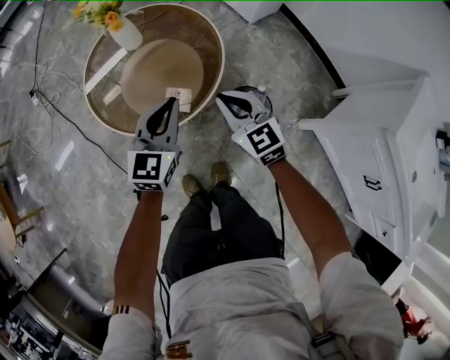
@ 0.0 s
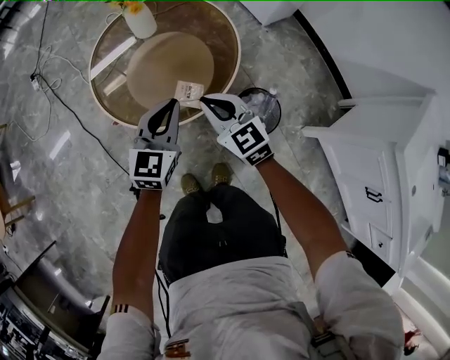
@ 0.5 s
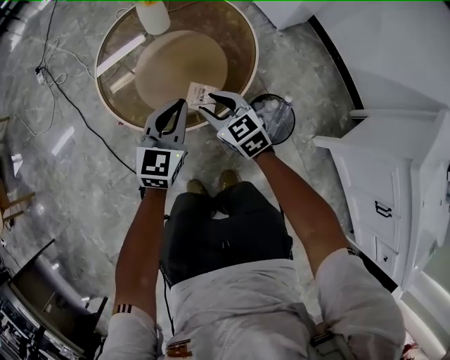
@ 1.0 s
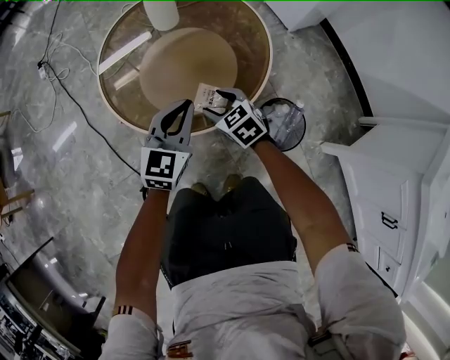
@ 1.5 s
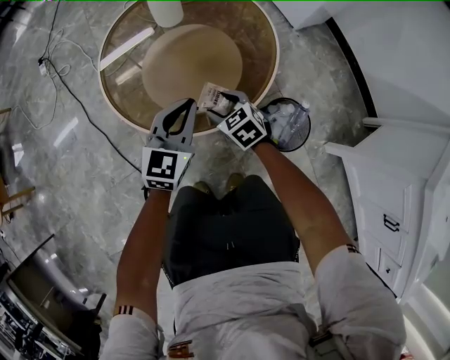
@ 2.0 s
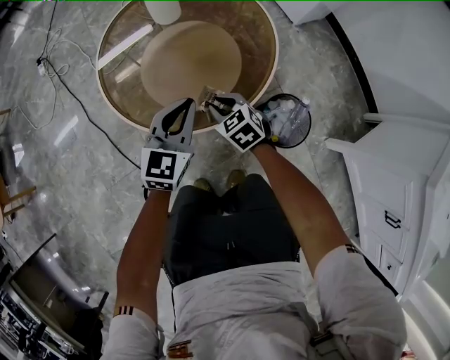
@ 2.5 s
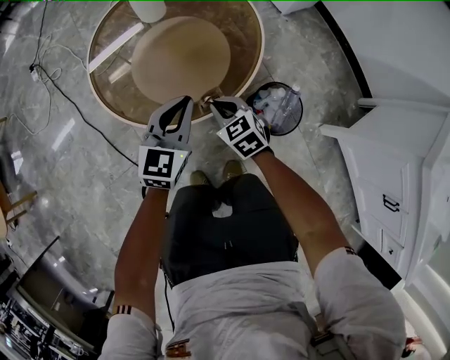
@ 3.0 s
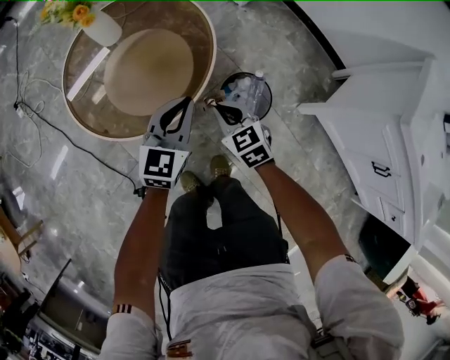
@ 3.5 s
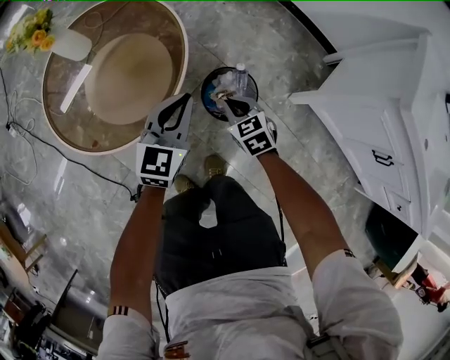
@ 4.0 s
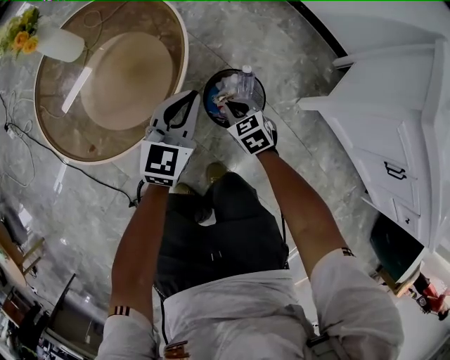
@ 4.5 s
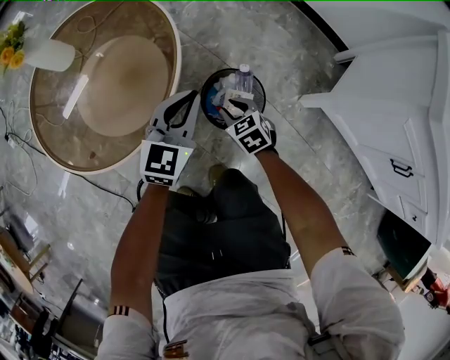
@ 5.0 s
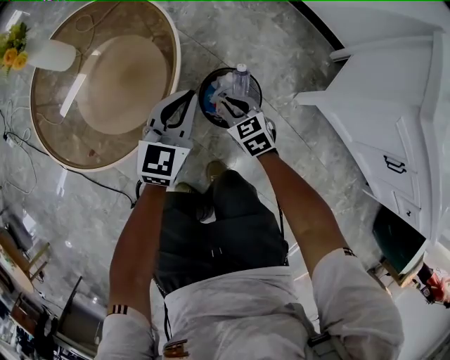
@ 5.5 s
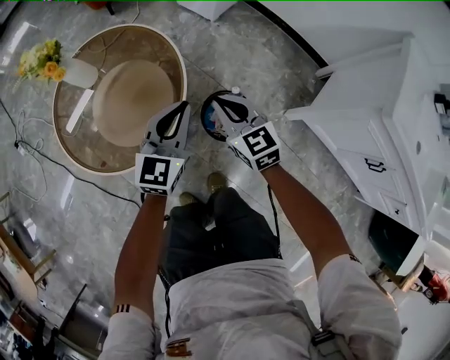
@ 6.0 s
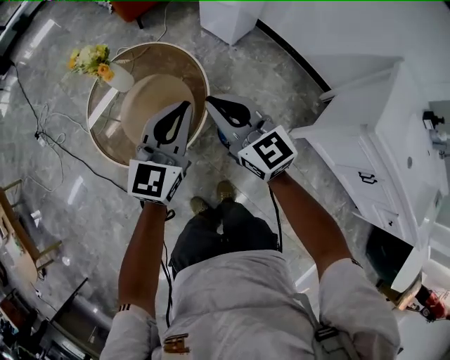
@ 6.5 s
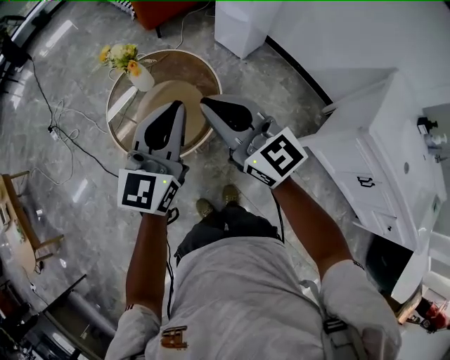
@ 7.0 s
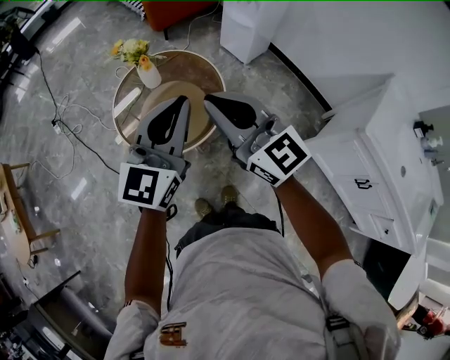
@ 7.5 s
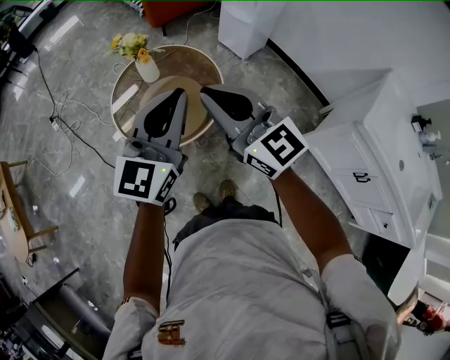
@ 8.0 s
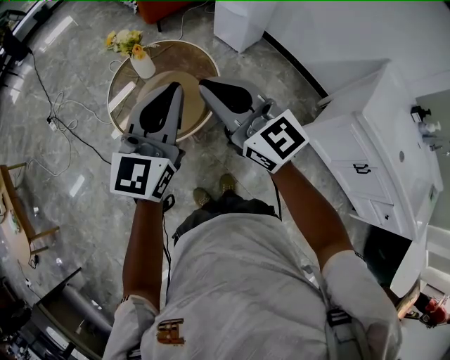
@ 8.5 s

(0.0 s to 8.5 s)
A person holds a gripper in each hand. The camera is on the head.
0.0 s - 2.0 s: The right gripper heads downward and to the left, covering some 30 cm, swivels approximately 30 degrees, and opens up, while the left gripper moves downward and to the left, about 20 cm.
2.0 s - 4.0 s: The right gripper moves some 10 cm upward and comes back, rotates about 30 degrees, and closes up. The left gripper changes place by some 20 cm, and rotates some 20 degrees.
4.0 s - 6.5 s: Both grippers move upward, approximately 35 cm. The right gripper tips its fingers upward by roughly 40 degrees, and opens, then closes again.
6.5 s - 8.5 s: The grippers both shift upward, backward and to the left by approximately 20 cm.

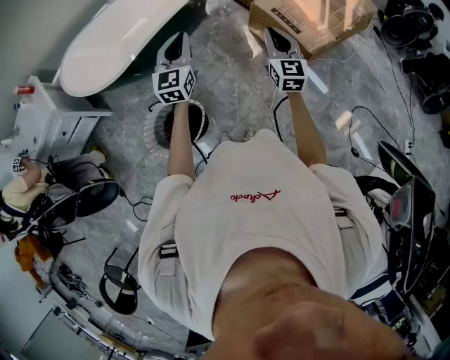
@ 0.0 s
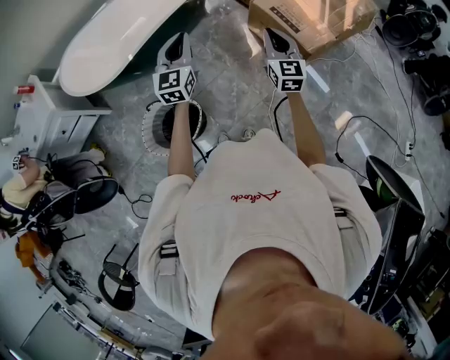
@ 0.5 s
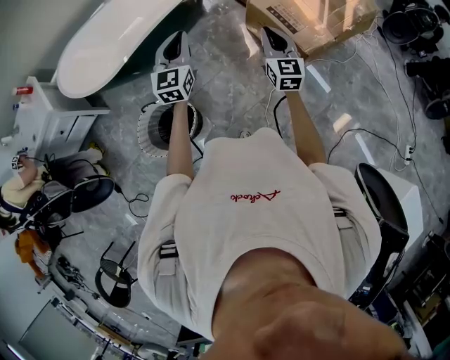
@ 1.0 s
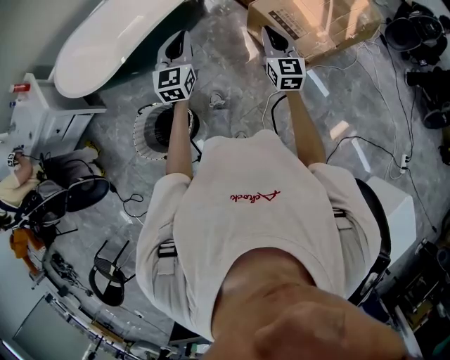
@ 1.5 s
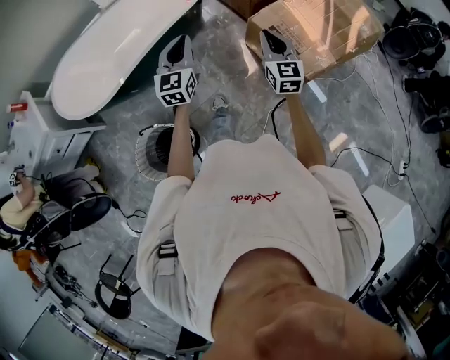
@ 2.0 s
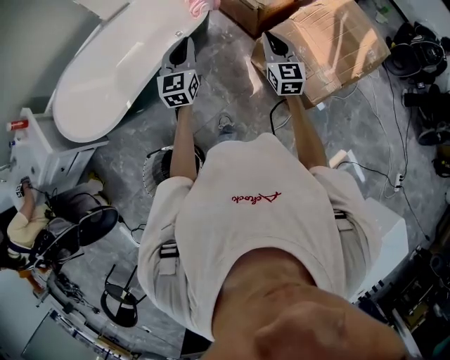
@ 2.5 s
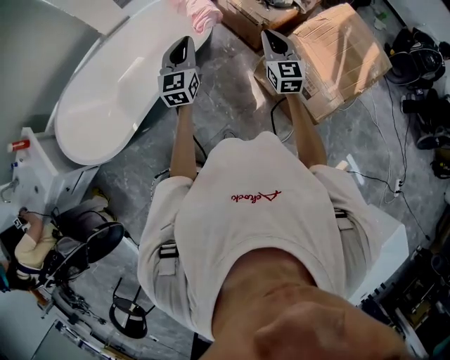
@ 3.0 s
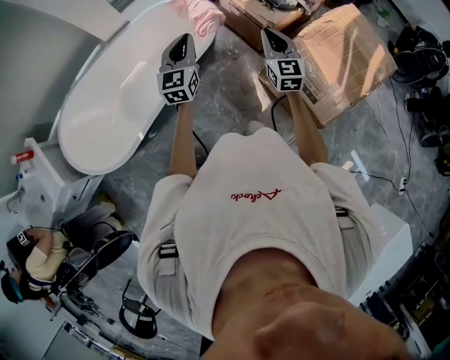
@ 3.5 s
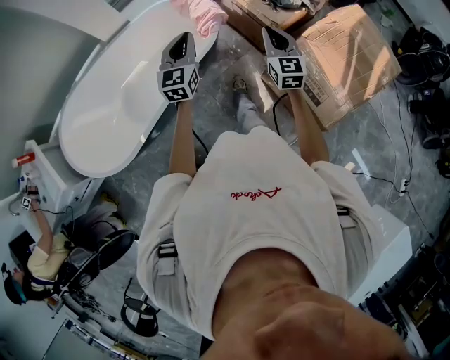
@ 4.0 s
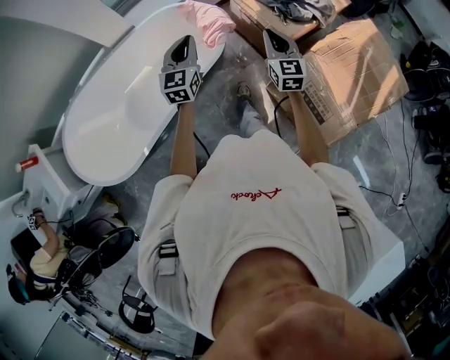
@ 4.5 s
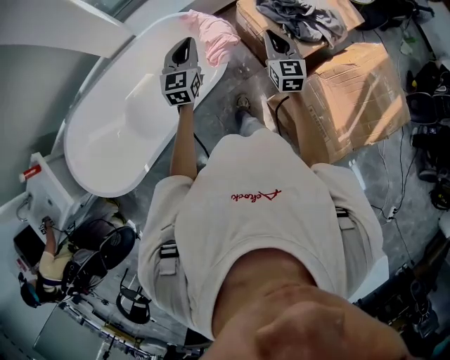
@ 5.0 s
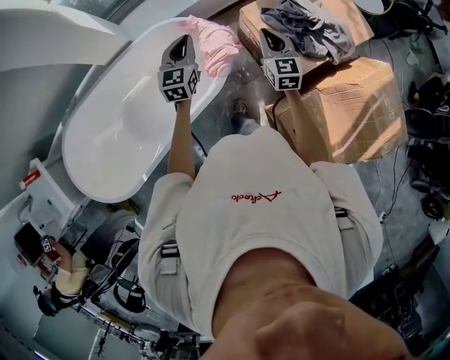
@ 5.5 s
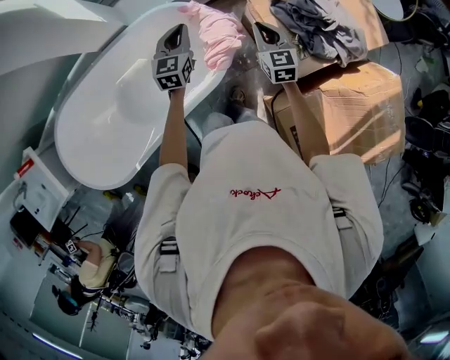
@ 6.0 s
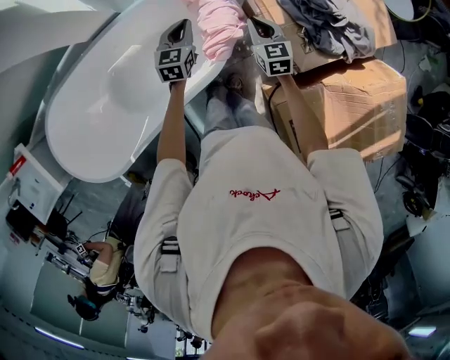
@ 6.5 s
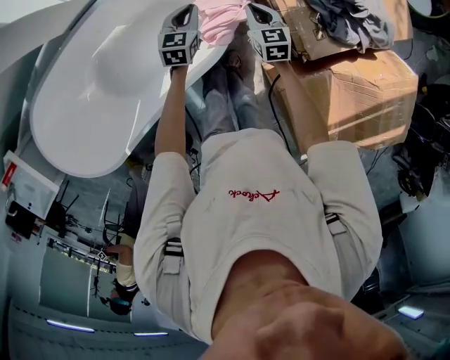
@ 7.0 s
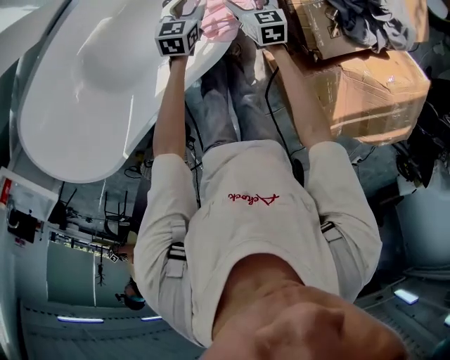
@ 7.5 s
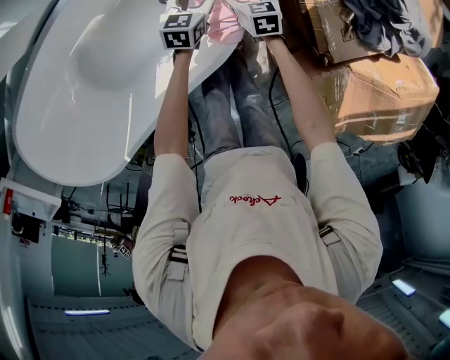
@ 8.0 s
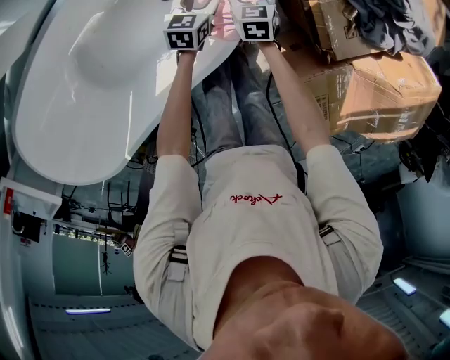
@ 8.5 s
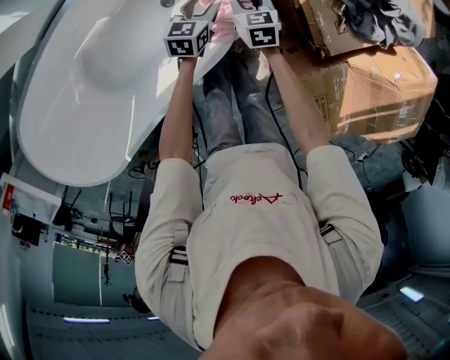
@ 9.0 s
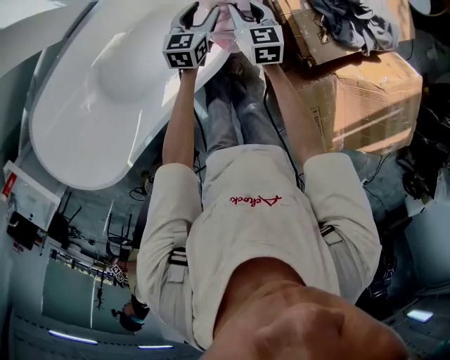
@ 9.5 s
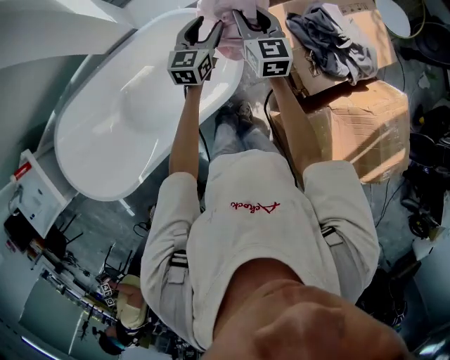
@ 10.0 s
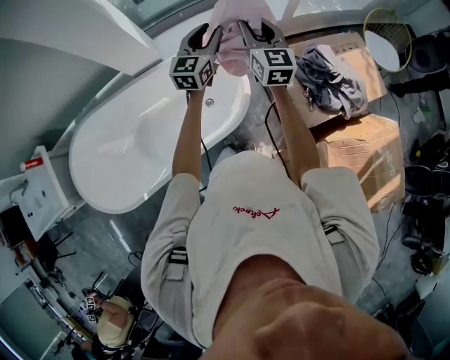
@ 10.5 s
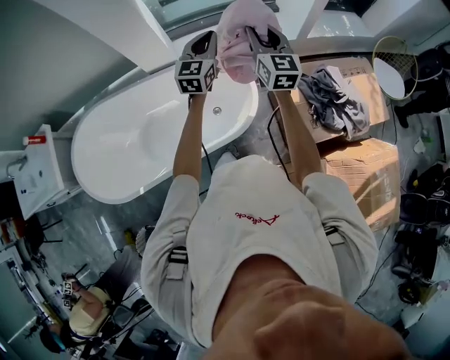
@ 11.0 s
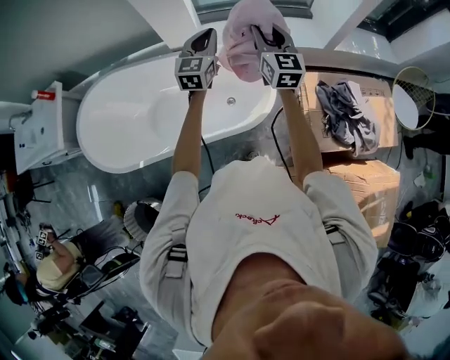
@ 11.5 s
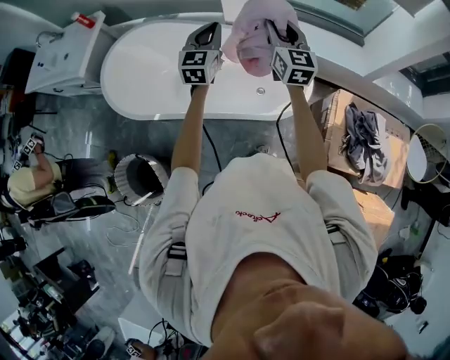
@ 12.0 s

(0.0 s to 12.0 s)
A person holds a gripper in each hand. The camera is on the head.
0.0 s - 2.0 s: The left gripper heads forward and to the right, covering approximately 20 cm; the right gripper shifts about 15 cm forward.
2.0 s - 4.0 s: The grippers both shift forward by roughly 35 cm.
4.0 s - 6.0 s: The pair of grippers is taken forward, some 40 cm. The right gripper rotates some 20 degrees. The left gripper turns by about 20 degrees.
6.0 s - 8.0 s: Both grippers move downward, approximately 40 cm. The left gripper turns by roughly 30 degrees, and opens up, while the right gripper swivels about 30 degrees, and opens up.
8.0 s - 10.0 s: Both grippers travel together upward, roughly 40 cm. The right gripper points its fingers approximately 40 degrees further upward, and closes up; the left gripper turns by about 30 degrees.
10.0 s - 12.0 s: The left gripper ends up approximately 40 cm from where it was, changes its angle by approximately 50 degrees, and closes. Meanwhile the right gripper shifts by some 35 cm, and rotates about 40 degrees.

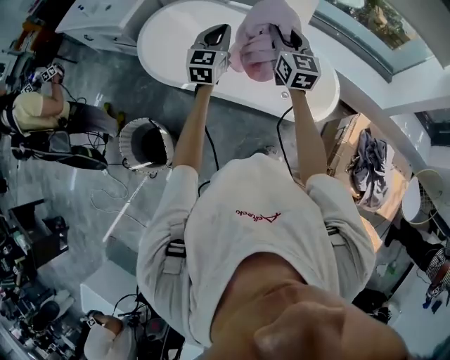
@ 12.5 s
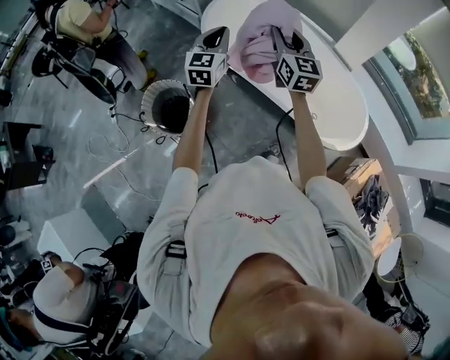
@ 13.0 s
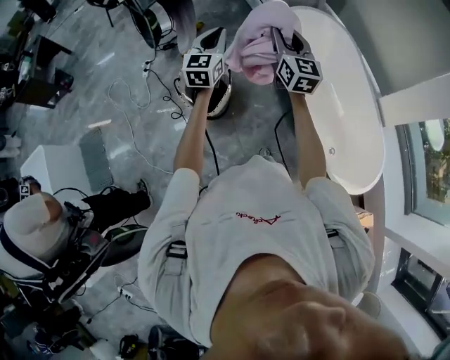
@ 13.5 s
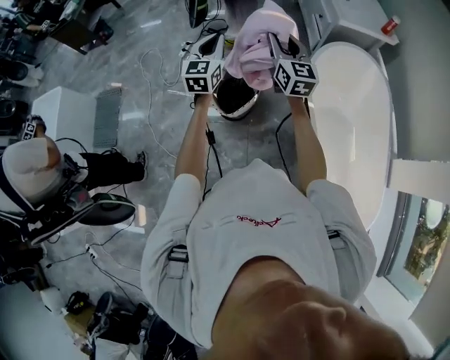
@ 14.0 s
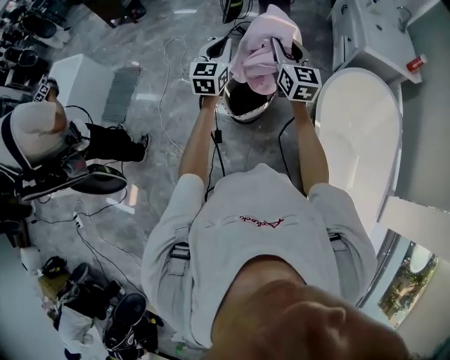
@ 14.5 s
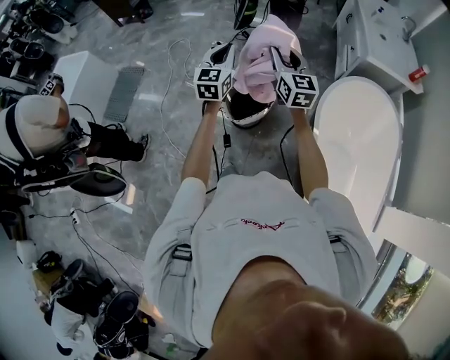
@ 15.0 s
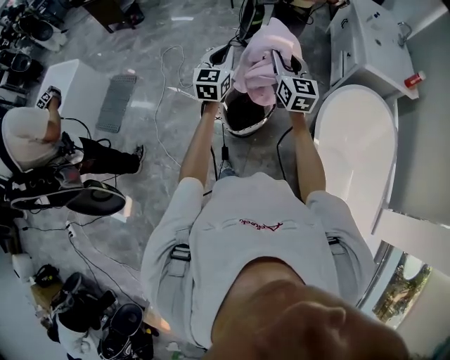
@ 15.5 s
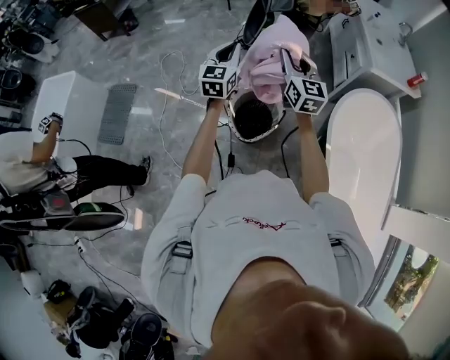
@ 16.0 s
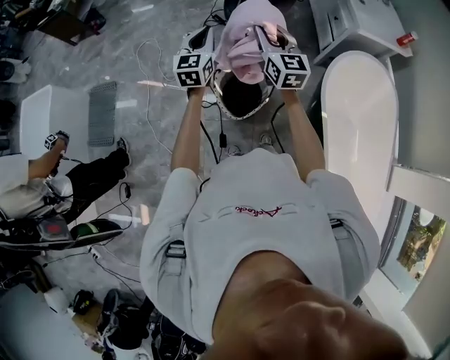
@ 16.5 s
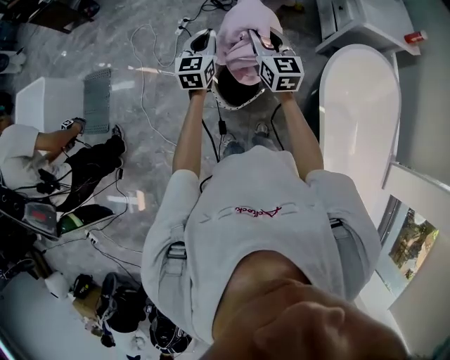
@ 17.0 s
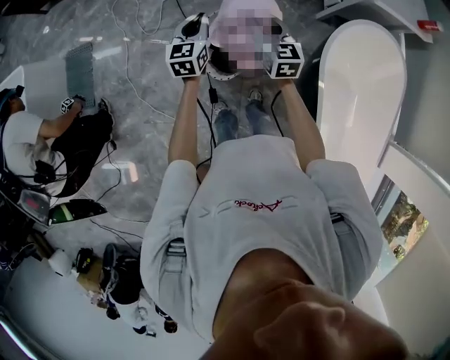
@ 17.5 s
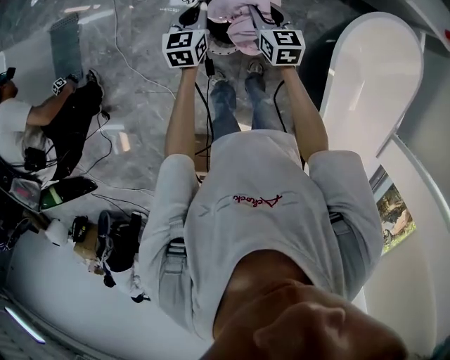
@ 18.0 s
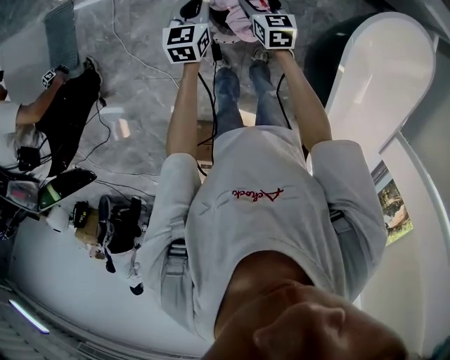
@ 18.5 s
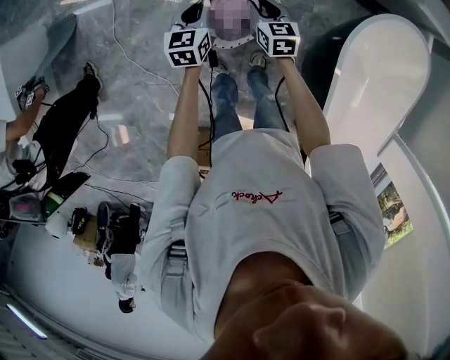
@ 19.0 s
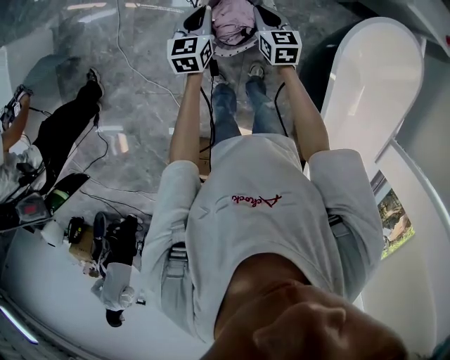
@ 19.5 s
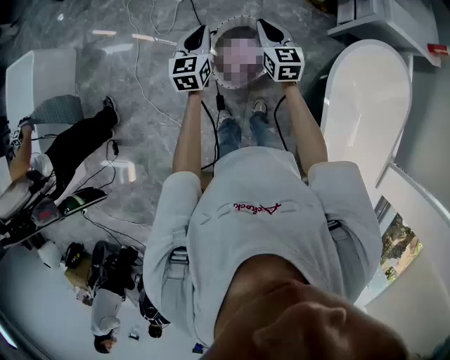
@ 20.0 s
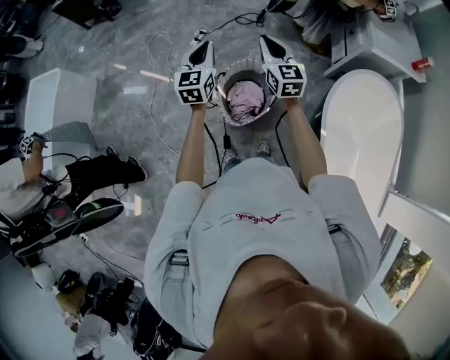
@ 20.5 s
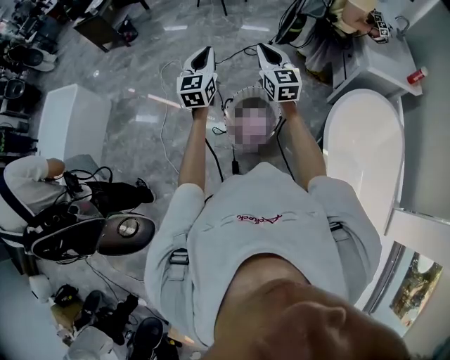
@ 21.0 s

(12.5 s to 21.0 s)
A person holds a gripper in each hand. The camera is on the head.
12.5 s - 14.5 s: Both grippers are carried approximately 70 cm. The right gripper rotates about 80 degrees. The left gripper changes its angle by about 80 degrees.
14.5 s - 16.5 s: Both grippers move forward and to the left, approximately 15 cm.
16.5 s - 19.0 s: The grippers both shift downward by approximately 35 cm. The left gripper turns by some 30 degrees. The right gripper tips its fingers downward by some 30 degrees, and opens, then closes once more.
19.0 s - 21.0 s: The grippers both shift upward by approximately 35 cm. The left gripper rotates roughly 30 degrees; the right gripper angles its fingers upward, by roughly 30 degrees.
